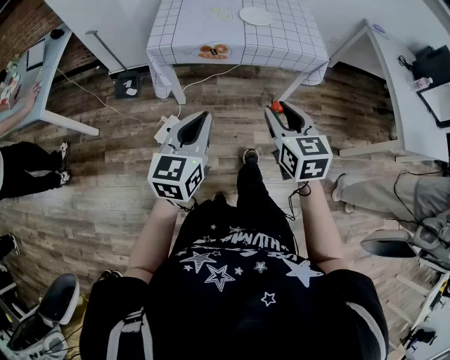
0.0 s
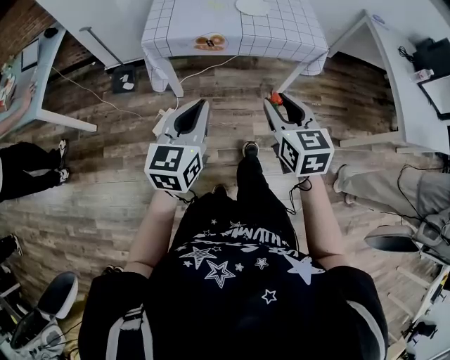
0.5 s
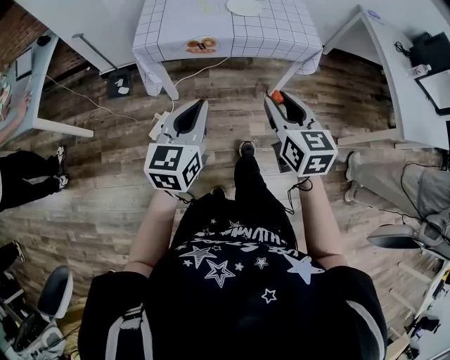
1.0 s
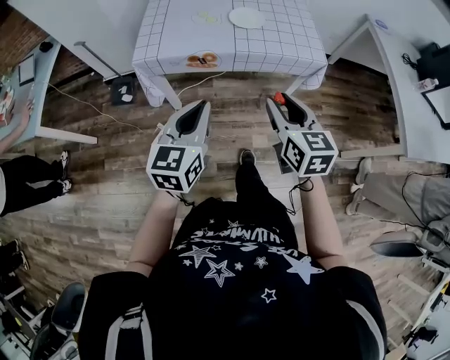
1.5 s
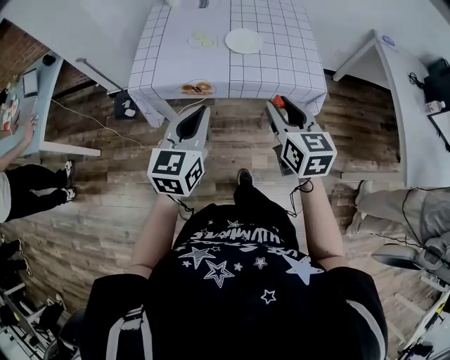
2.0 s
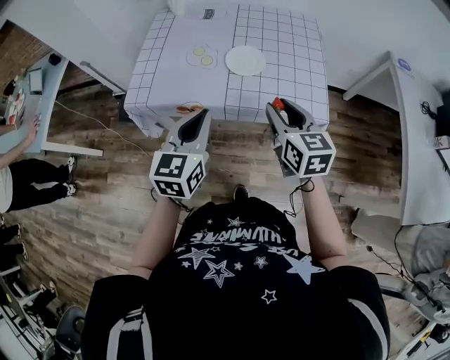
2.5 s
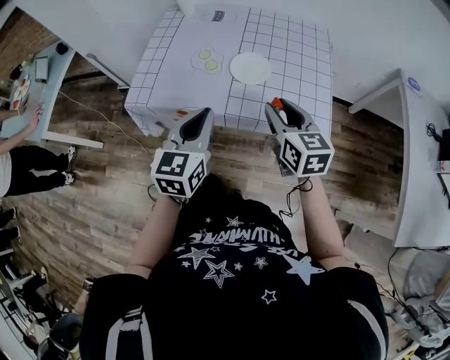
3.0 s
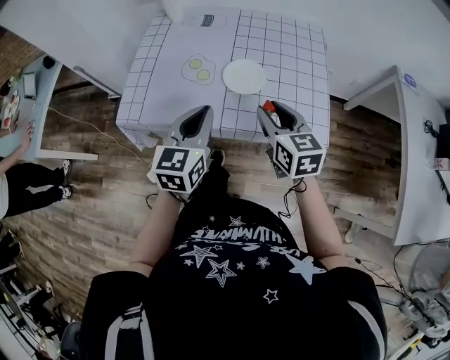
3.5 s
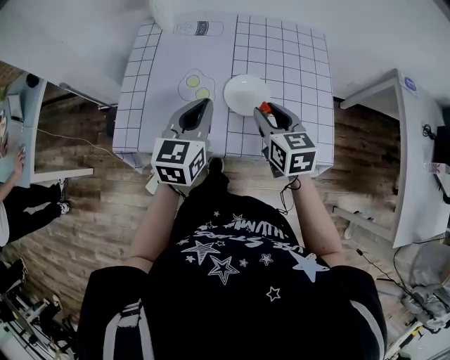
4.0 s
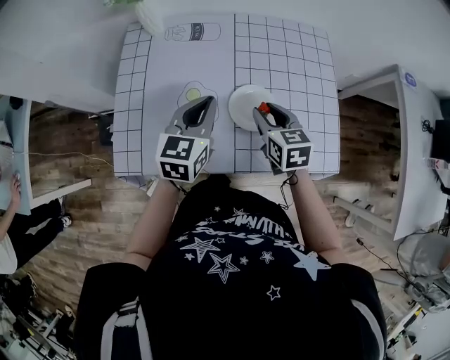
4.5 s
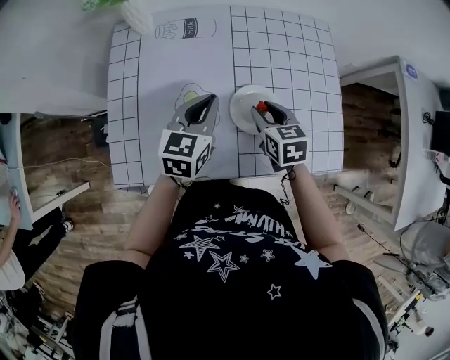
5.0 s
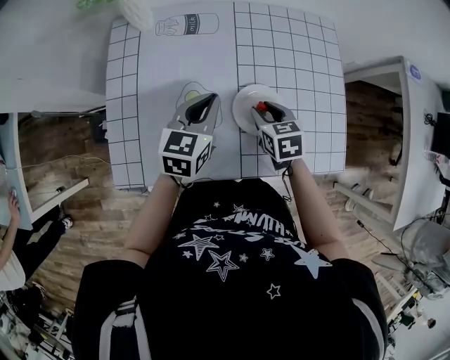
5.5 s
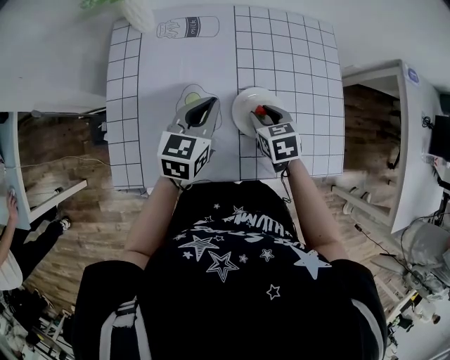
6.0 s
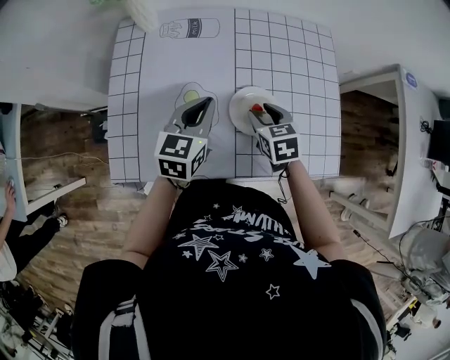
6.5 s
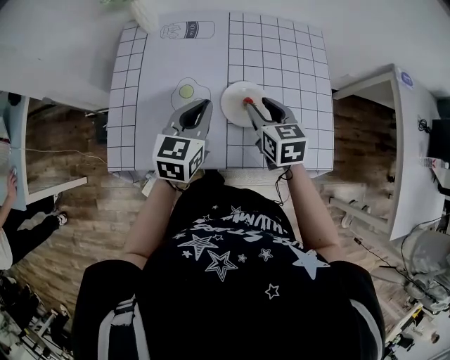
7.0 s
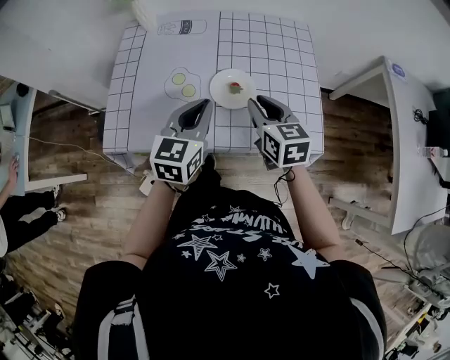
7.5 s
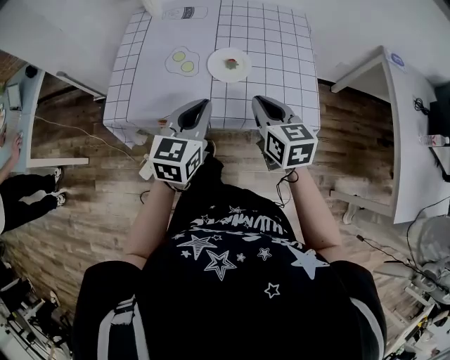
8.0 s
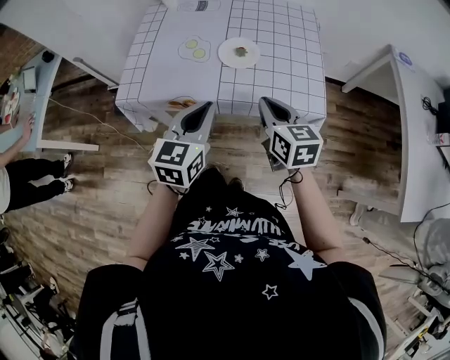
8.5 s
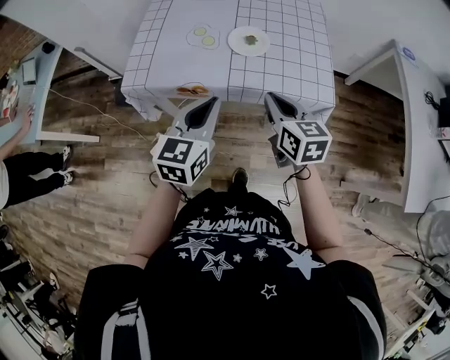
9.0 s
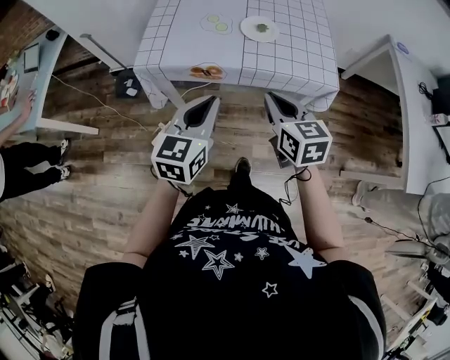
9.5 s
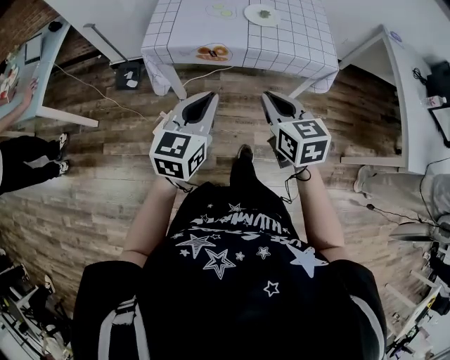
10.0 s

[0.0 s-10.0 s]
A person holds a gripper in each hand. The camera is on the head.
0.0 to 2.0 s: The two grippers go about 20 cm forward.
2.0 to 4.0 s: The two grippers go approximately 30 cm forward.
4.0 to 6.0 s: The right gripper travels downward and forward by about 15 cm, and turns by roughly 20 degrees, while the left gripper moves forward and downward, approximately 15 cm.
6.0 to 8.0 s: The right gripper heads backward and upward, covering roughly 25 cm, changes its angle by about 30 degrees, and closes; the left gripper travels backward by roughly 25 cm.
8.0 to 10.0 s: The two grippers go about 30 cm backward and to the left.

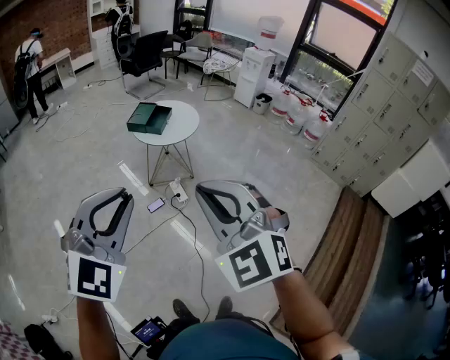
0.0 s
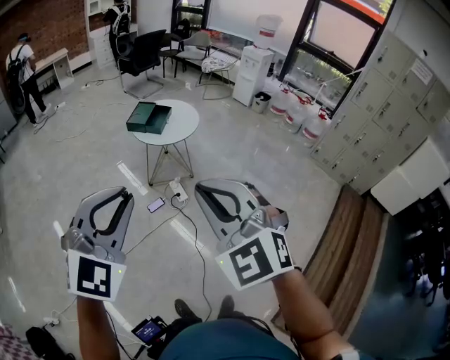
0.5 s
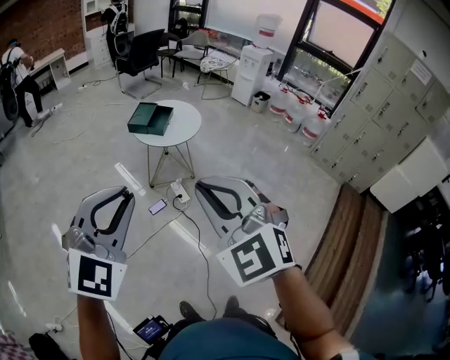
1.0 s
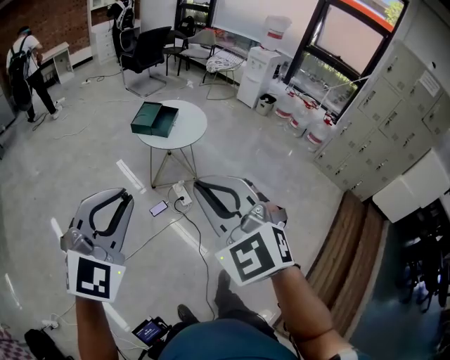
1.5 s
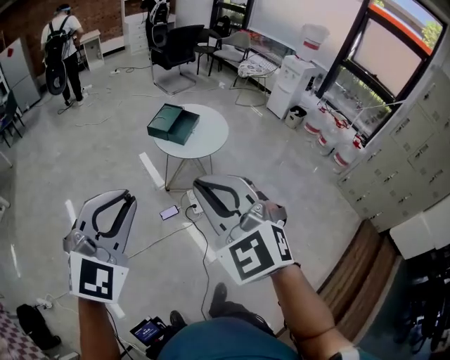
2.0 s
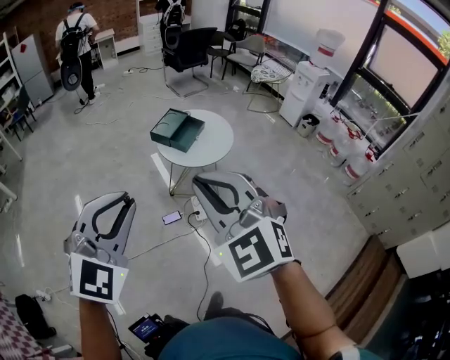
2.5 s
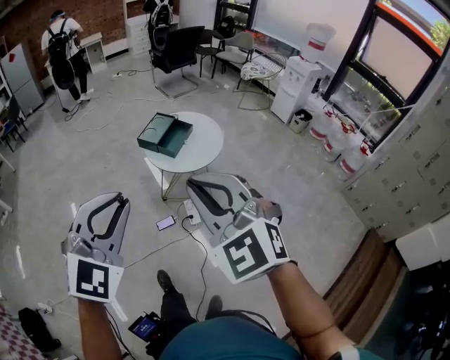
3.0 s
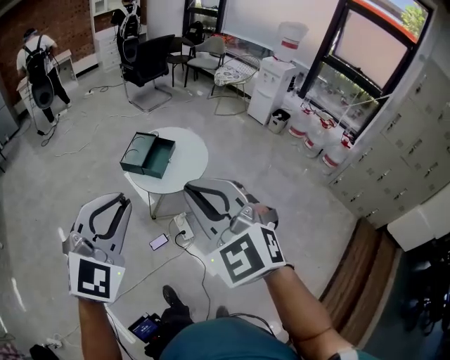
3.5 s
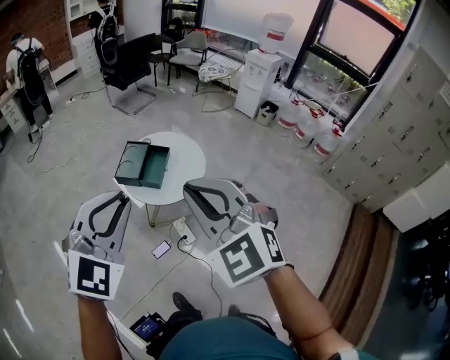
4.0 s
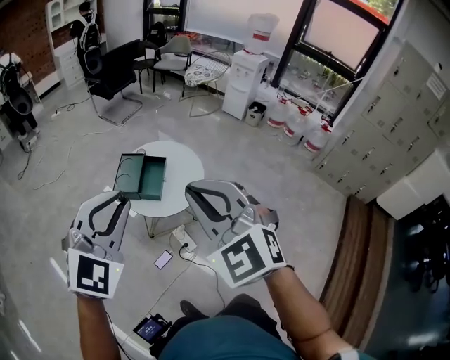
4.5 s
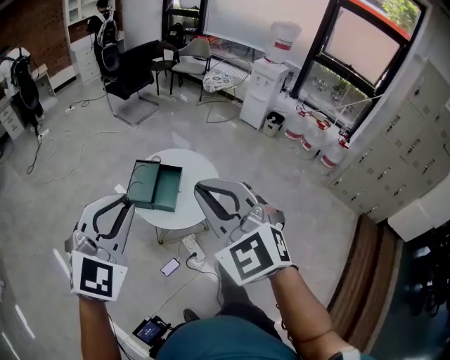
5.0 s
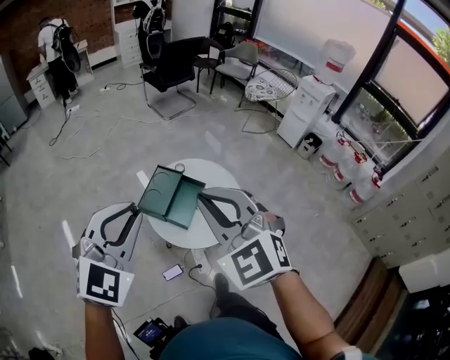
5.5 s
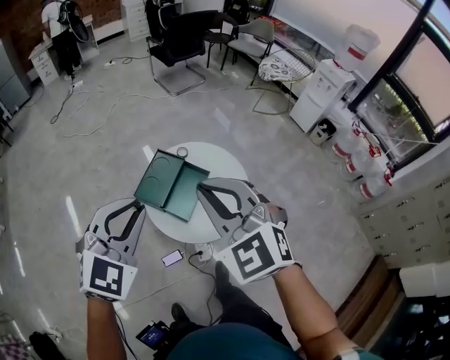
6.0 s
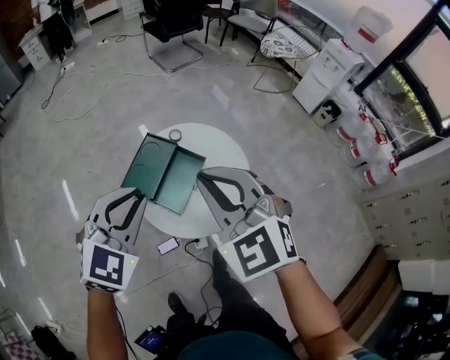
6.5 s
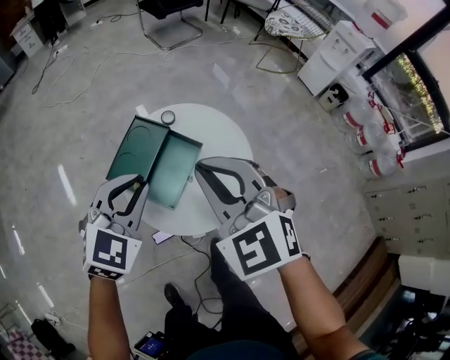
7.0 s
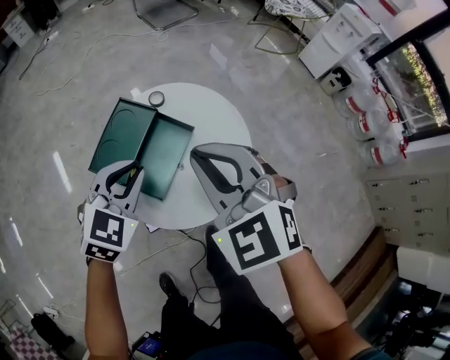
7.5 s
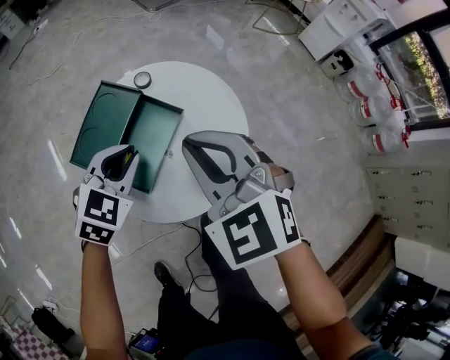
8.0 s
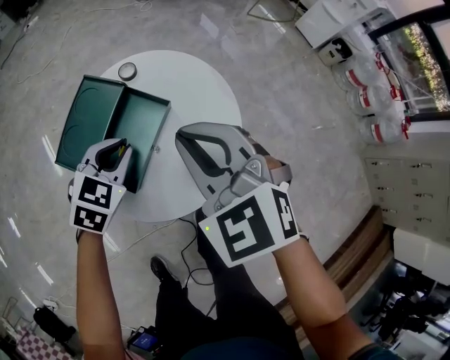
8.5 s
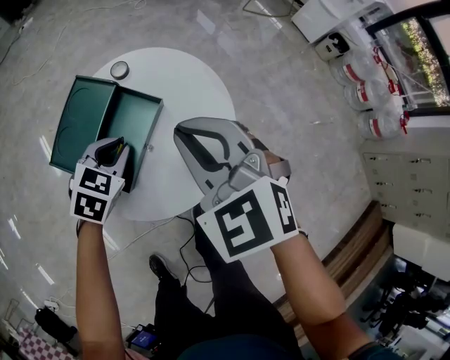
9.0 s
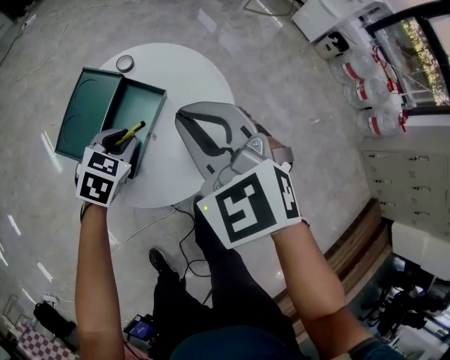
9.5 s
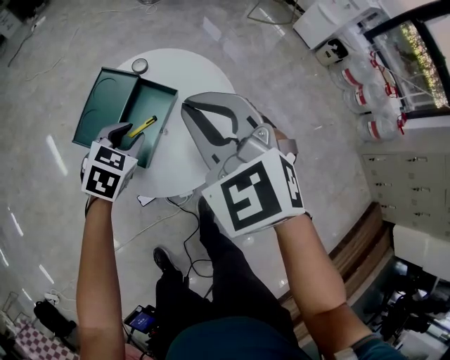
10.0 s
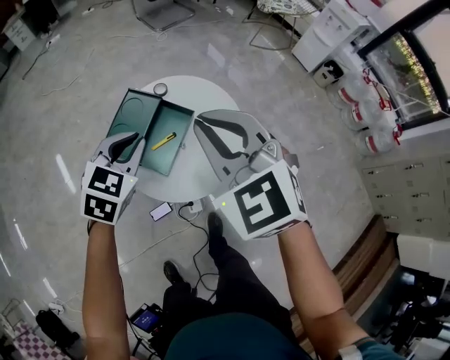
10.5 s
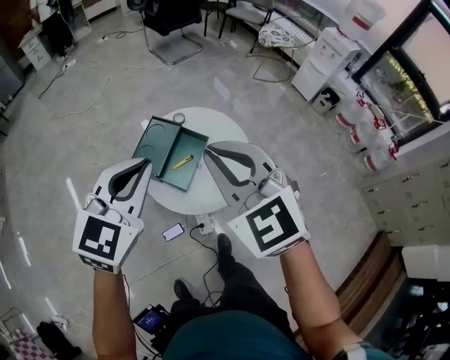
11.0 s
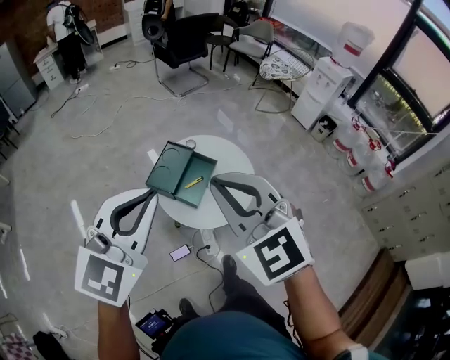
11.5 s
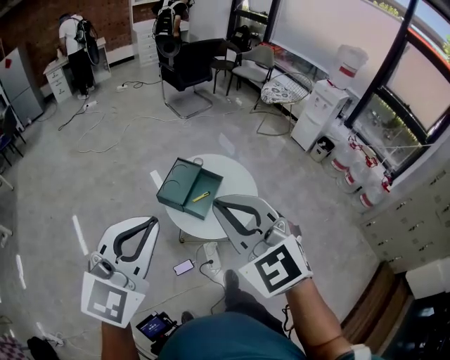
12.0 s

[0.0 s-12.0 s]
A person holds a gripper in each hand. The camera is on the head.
0.0 to 2.0 s: The grippers both shift forward by roughly 20 cm.
2.0 to 4.0 s: Both grippers travel together forward, about 30 cm.
4.0 to 6.0 s: The two grippers go roughly 35 cm forward. The left gripper turns by some 20 degrees.
6.0 to 8.0 s: Both grippers move downward and forward, approximately 35 cm. The left gripper swivels approximately 20 degrees.
8.0 to 10.0 s: The left gripper goes downward and returns, about 10 cm each way. Meanwhile the right gripper travels upward by some 5 cm.
10.0 to 12.0 s: The left gripper travels upward and backward by about 60 cm, angles its fingers upward, by approximately 40 degrees, and closes its fingers. Meanwhile the right gripper moves upward, backward and to the left, approximately 40 cm.

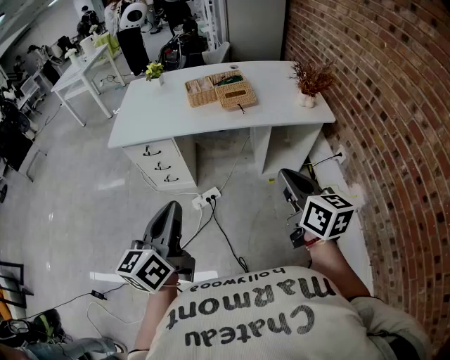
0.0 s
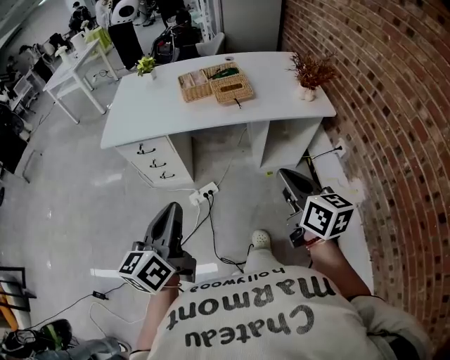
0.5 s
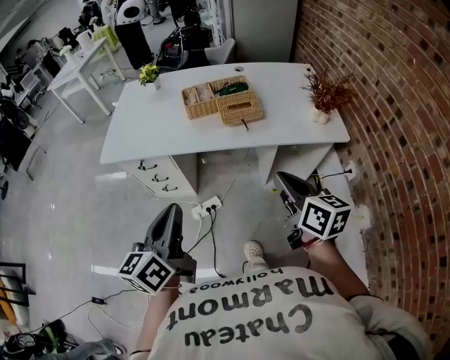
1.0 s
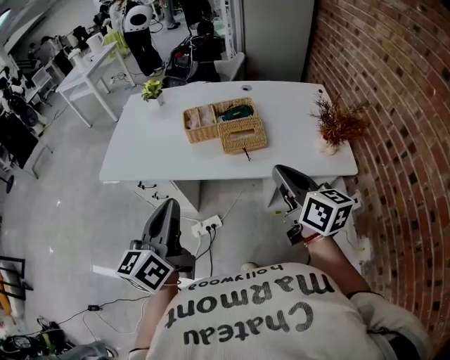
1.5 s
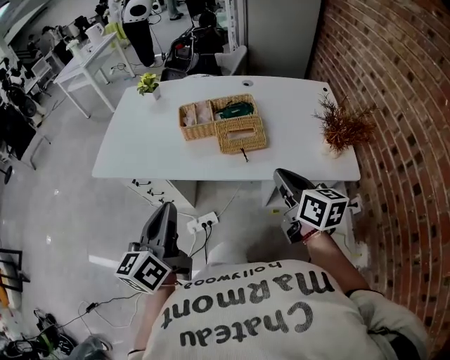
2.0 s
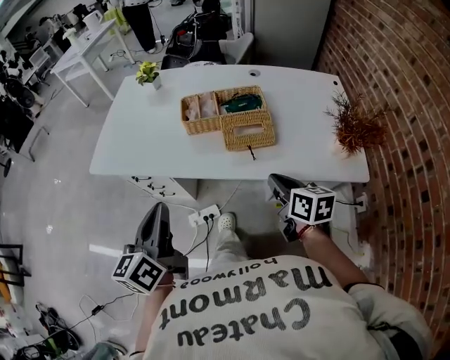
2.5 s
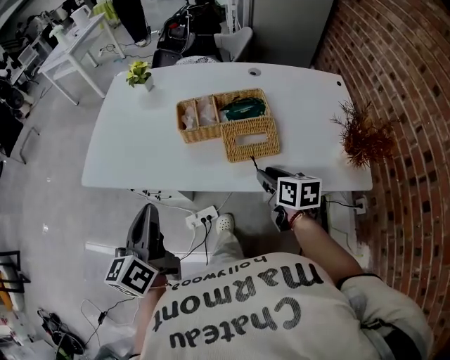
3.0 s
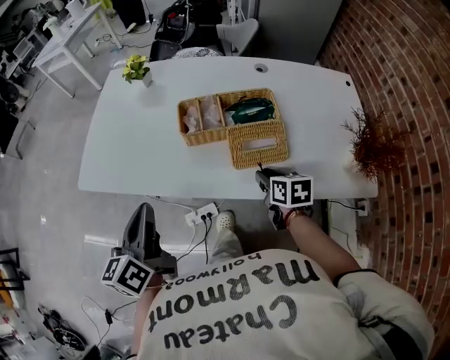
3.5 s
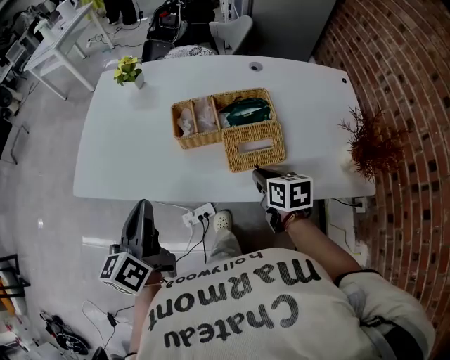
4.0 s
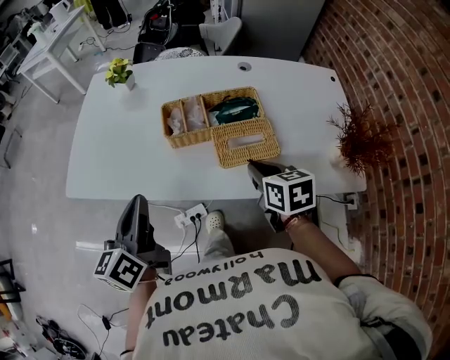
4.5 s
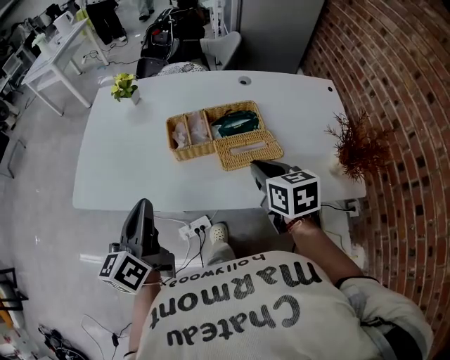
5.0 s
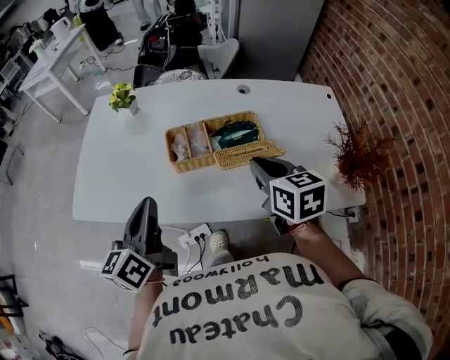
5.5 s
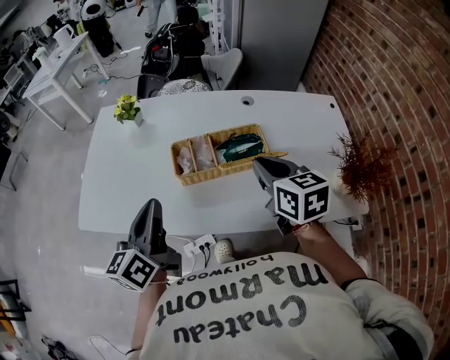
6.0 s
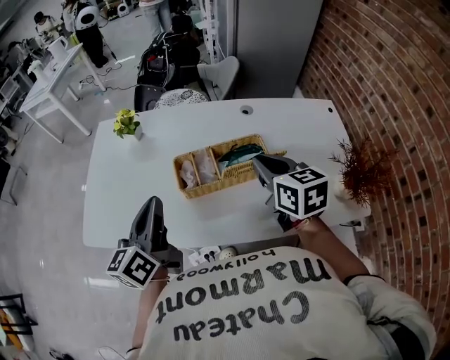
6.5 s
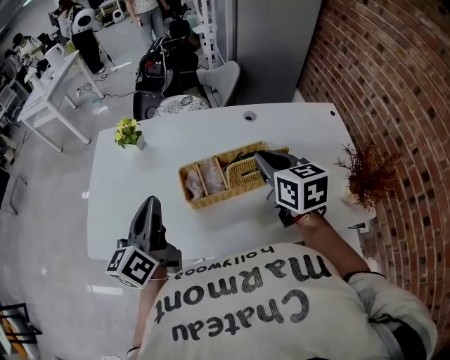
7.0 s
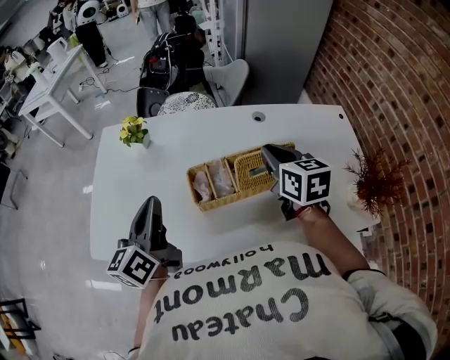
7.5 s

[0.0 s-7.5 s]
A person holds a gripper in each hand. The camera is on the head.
0.0 to 2.0 s: Both grippers move forward, about 30 cm.
2.0 to 4.0 s: The left gripper is displaced forward by about 20 cm; the right gripper moves forward and downward, some 25 cm, turns by some 30 degrees, and opens and closes again.
4.0 to 5.5 s: The left gripper ends up roughly 5 cm from where it was; the right gripper goes approximately 15 cm upward.
5.5 to 7.5 s: The two grippers go roughly 15 cm forward.
